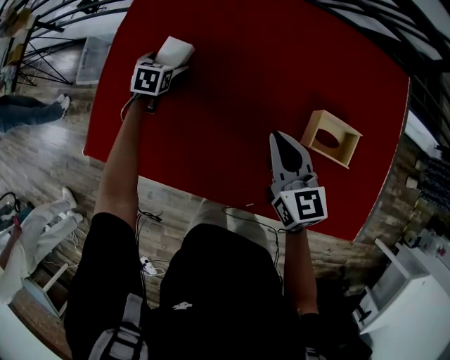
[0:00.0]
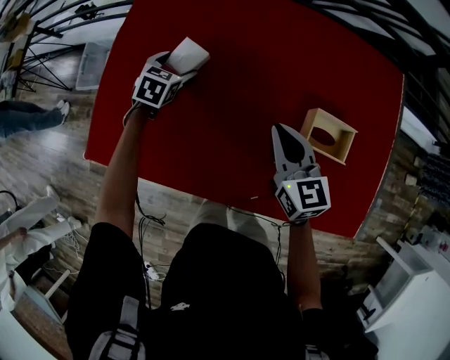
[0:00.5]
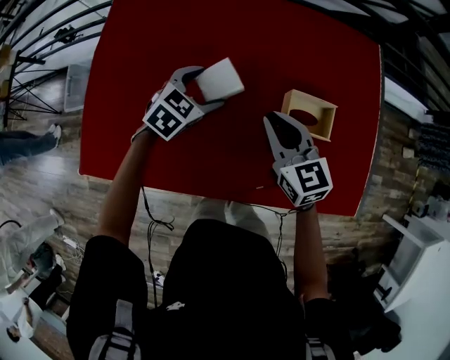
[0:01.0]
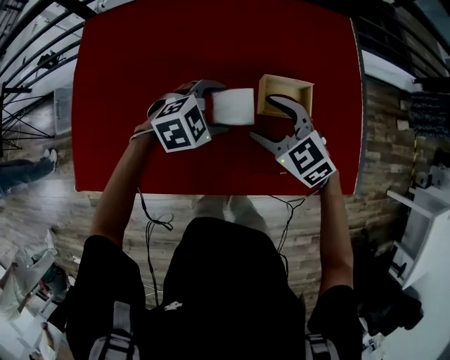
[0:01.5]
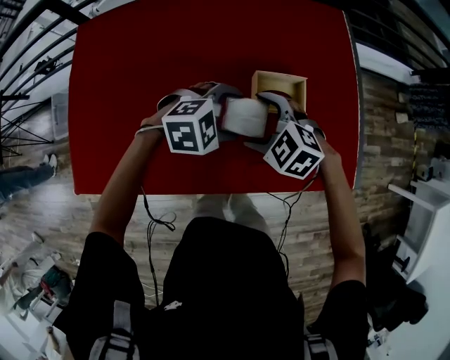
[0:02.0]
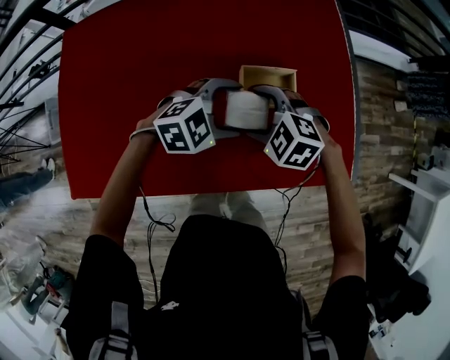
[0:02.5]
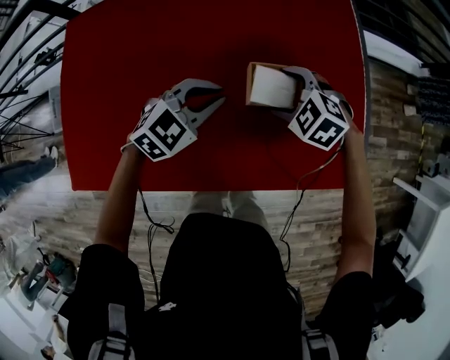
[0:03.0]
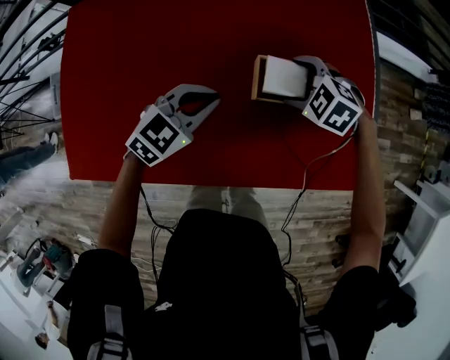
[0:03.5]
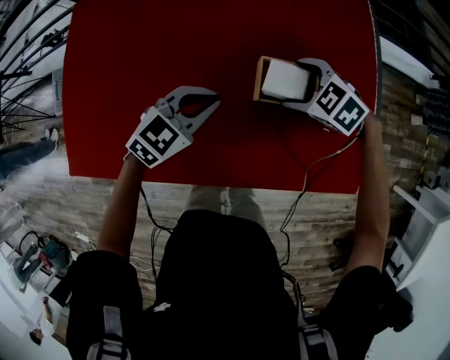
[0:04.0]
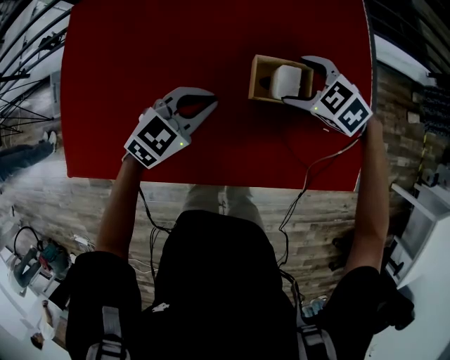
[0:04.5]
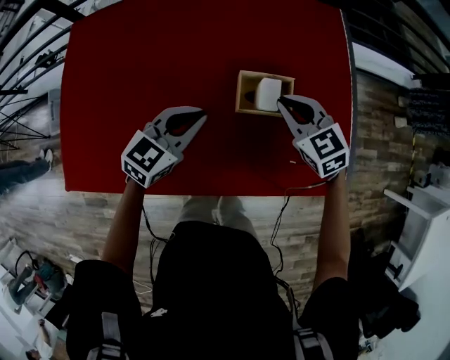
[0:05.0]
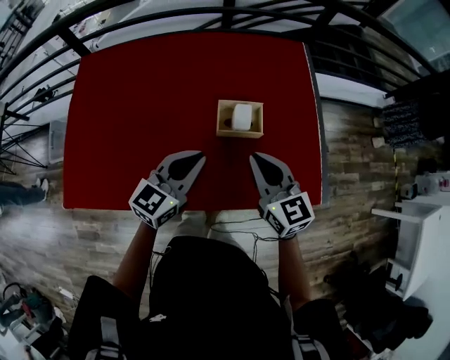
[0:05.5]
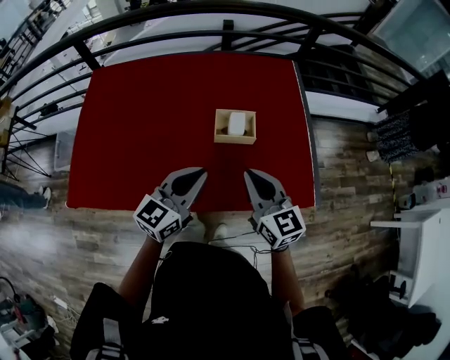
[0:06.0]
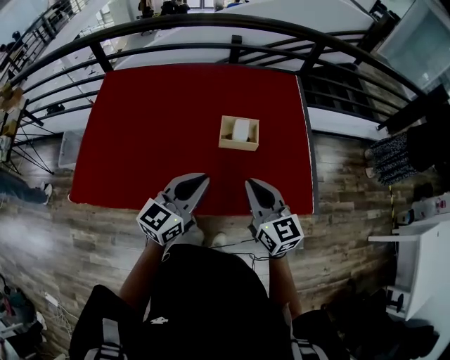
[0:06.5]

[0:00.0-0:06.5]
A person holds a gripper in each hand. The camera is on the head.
0:00.0 to 0:02.0: The right gripper ends up roughly 10 cm from where it was, points its fingers roughly 30 degrees further downward, and opens. The left gripper ends up roughly 50 cm from where it was, and rotates approximately 90 degrees.
0:02.0 to 0:04.5: The right gripper moves some 15 cm. The left gripper swivels some 40 degrees, and closes up.
0:04.5 to 0:06.5: The grippers both shift backward and upward by approximately 30 cm. The left gripper tips its fingers upward by some 30 degrees; the right gripper tips its fingers upward by roughly 50 degrees, and closes its fingers.

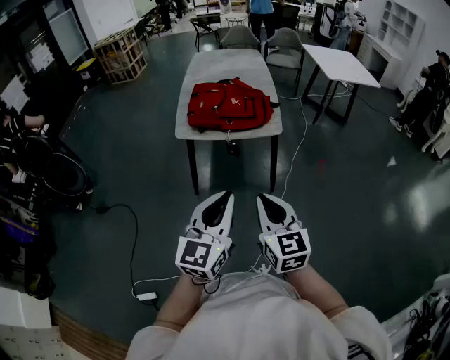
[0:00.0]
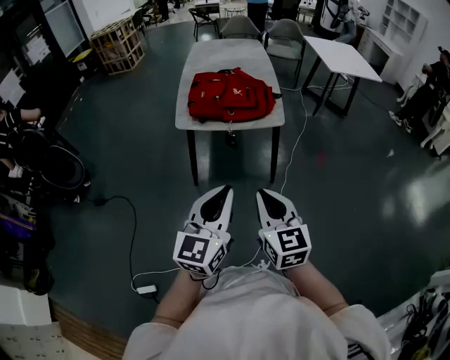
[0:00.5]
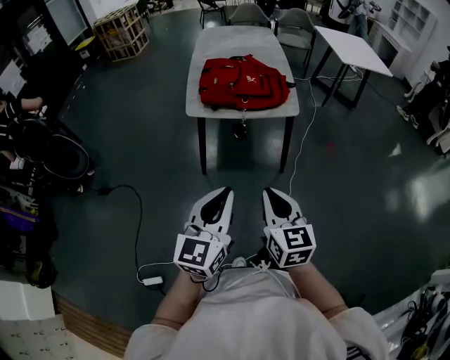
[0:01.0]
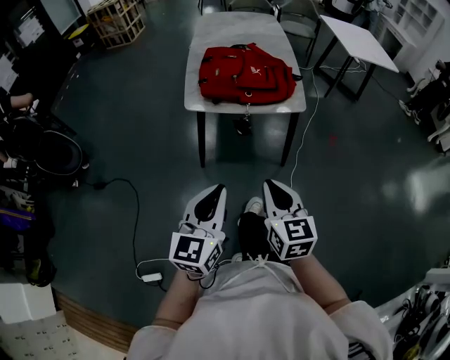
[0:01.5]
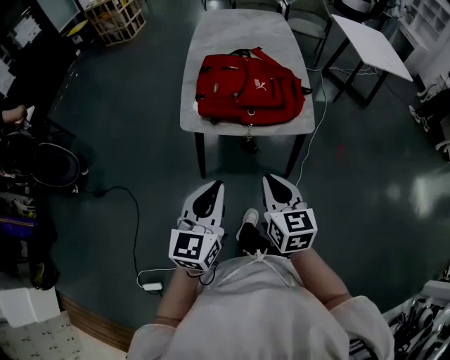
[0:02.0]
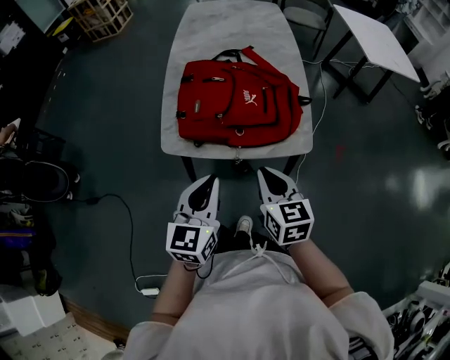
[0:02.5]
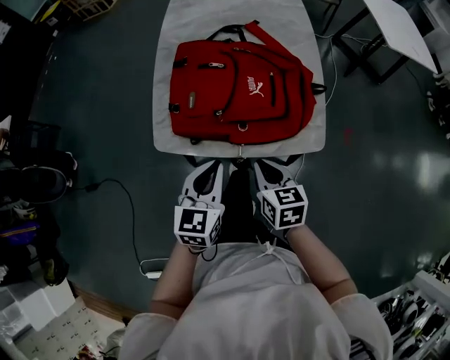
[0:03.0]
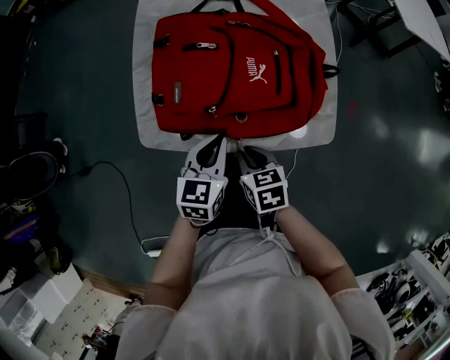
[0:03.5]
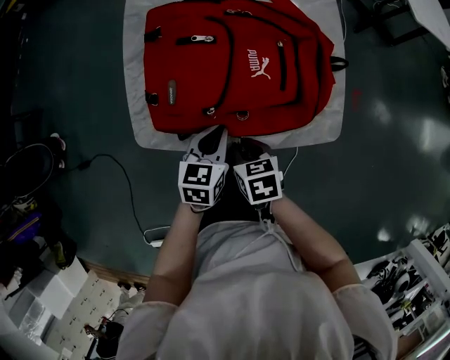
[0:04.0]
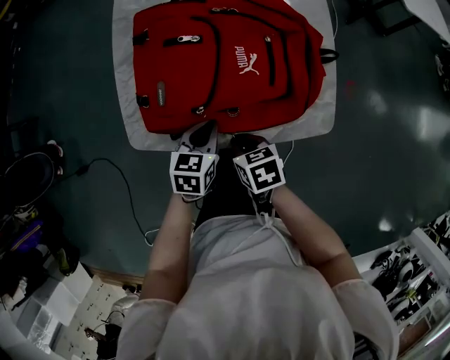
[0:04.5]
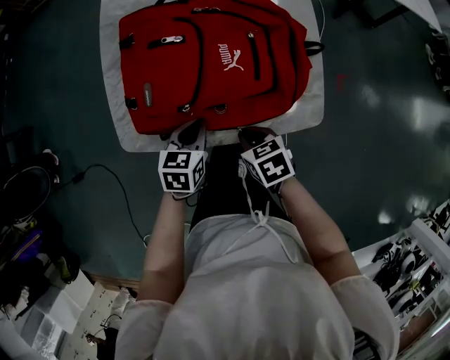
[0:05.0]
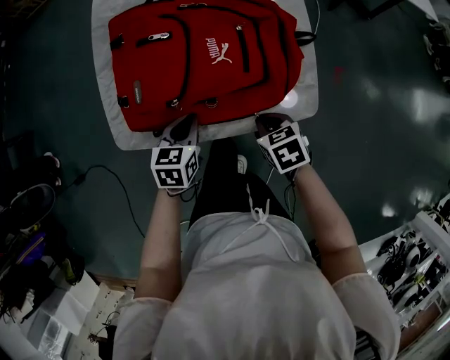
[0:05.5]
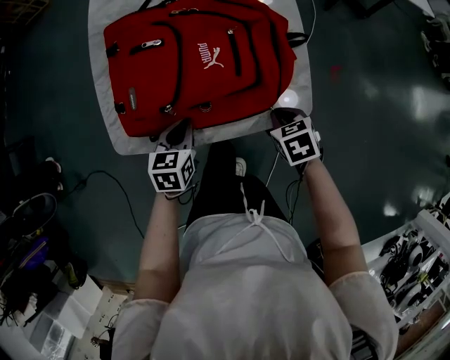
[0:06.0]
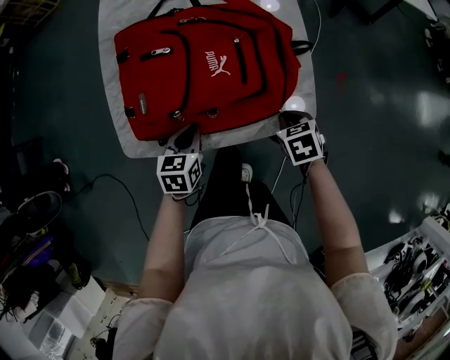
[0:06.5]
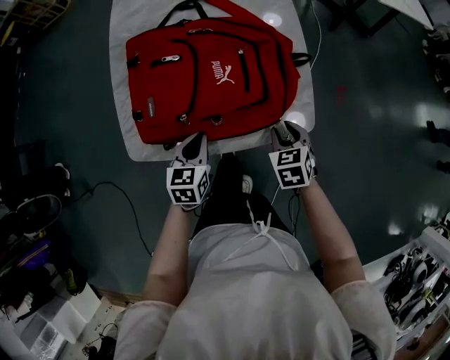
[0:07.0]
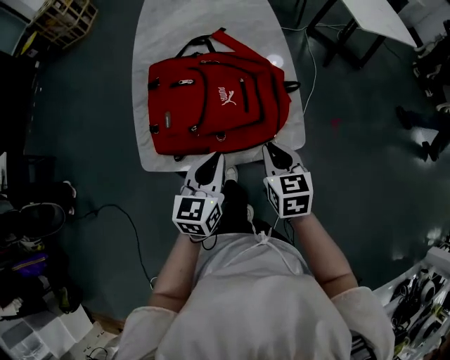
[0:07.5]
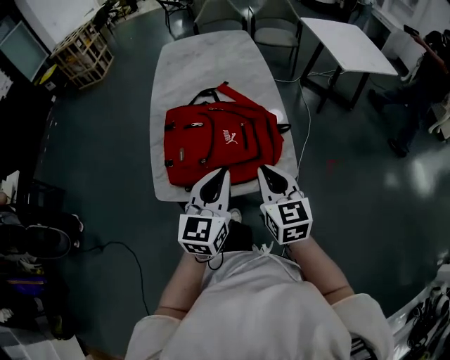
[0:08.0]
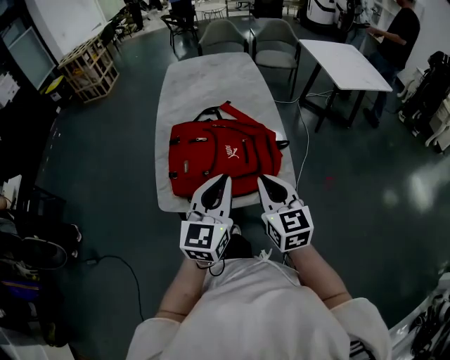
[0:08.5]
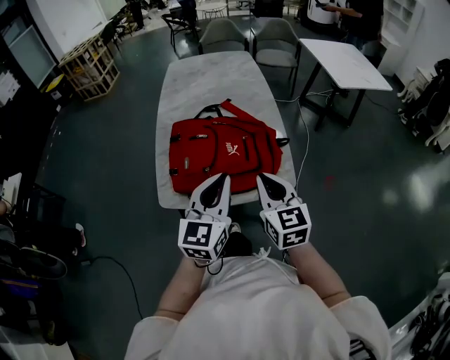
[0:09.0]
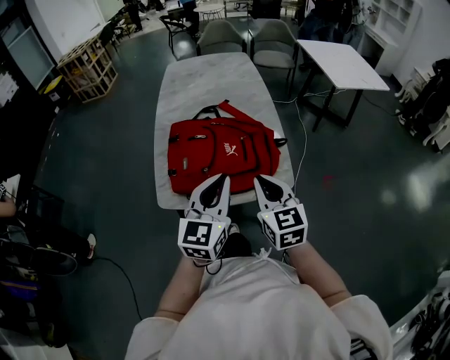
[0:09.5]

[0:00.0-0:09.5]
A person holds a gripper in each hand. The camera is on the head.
0:00.0 to 0:02.0: The right gripper moves forward, about 25 cm. Meanwhile the left gripper moves forward, to the left and downward, some 25 cm.
0:02.0 to 0:04.0: Both grippers travel together forward and downward, roughly 40 cm. The right gripper tilts its fingers approximately 30 degrees downward, while the left gripper changes its angle by some 30 degrees.
0:04.0 to 0:05.5: The right gripper shifts about 15 cm to the right.
0:05.5 to 0:07.5: Both grippers travel together upward, about 15 cm. The left gripper turns by roughly 30 degrees. Meanwhile the right gripper turns by roughly 30 degrees.
0:07.5 to 0:09.5: The right gripper travels upward and backward by approximately 15 cm, and turns by about 20 degrees, while the left gripper travels upward by roughly 15 cm, and turns by some 20 degrees.

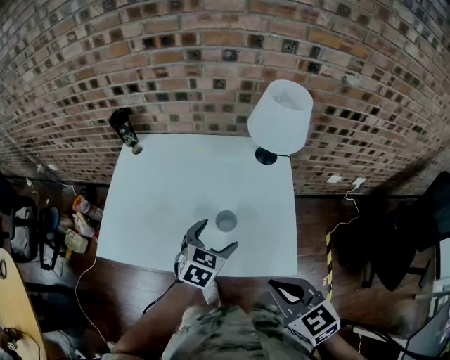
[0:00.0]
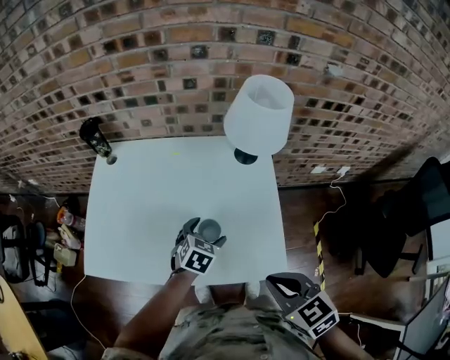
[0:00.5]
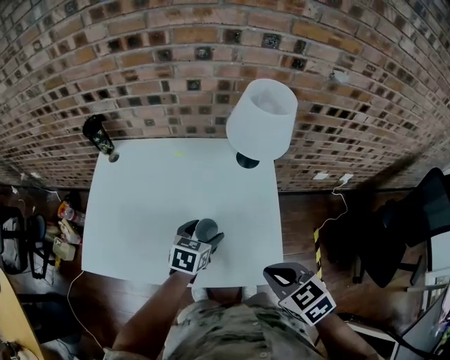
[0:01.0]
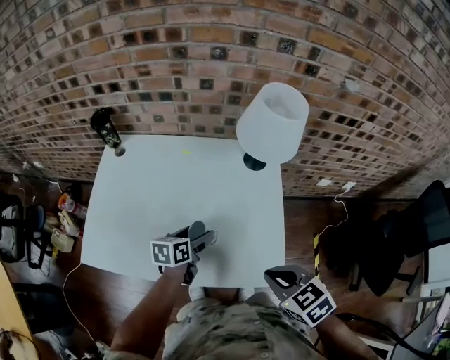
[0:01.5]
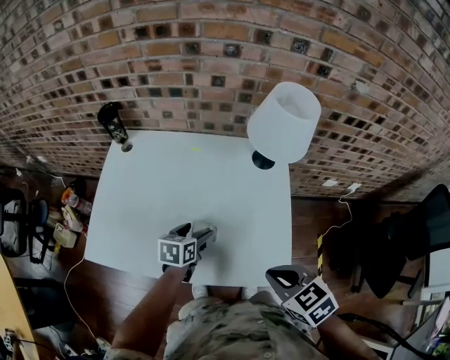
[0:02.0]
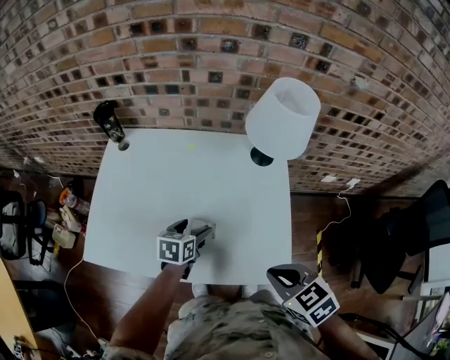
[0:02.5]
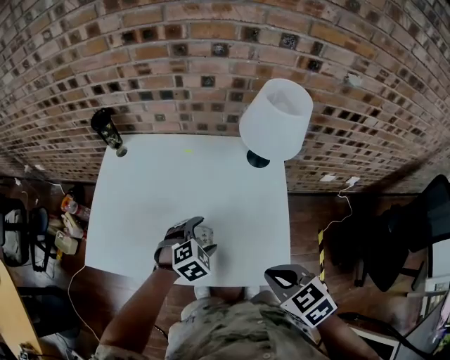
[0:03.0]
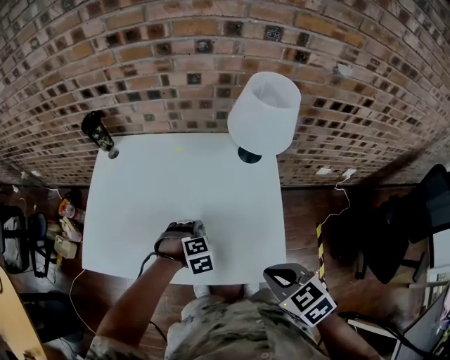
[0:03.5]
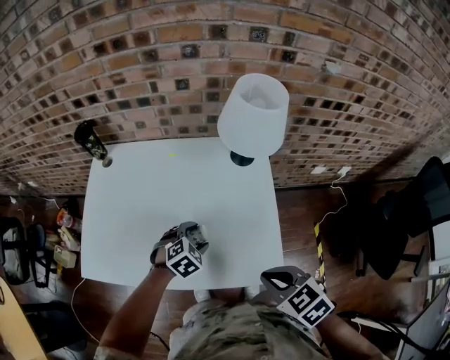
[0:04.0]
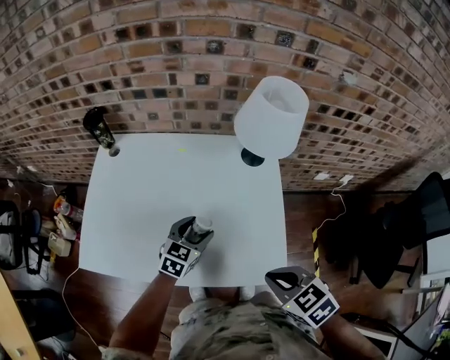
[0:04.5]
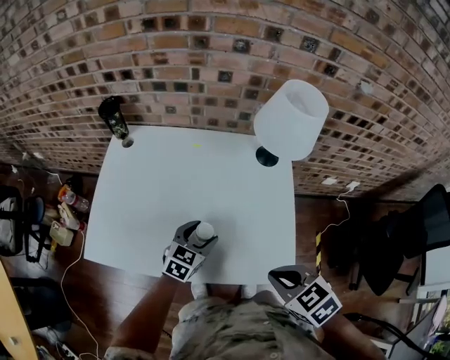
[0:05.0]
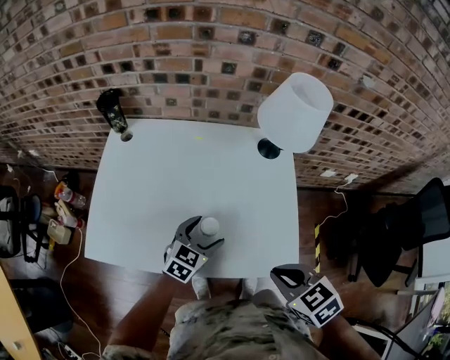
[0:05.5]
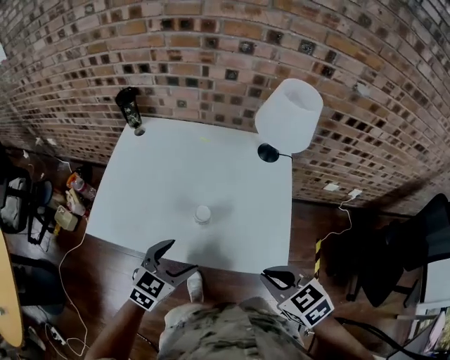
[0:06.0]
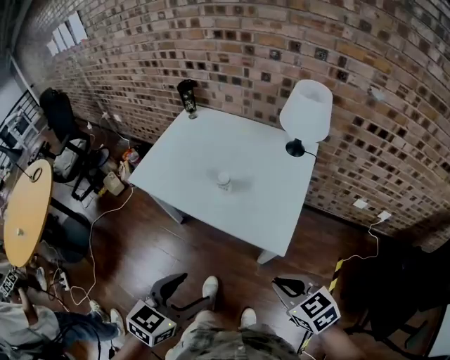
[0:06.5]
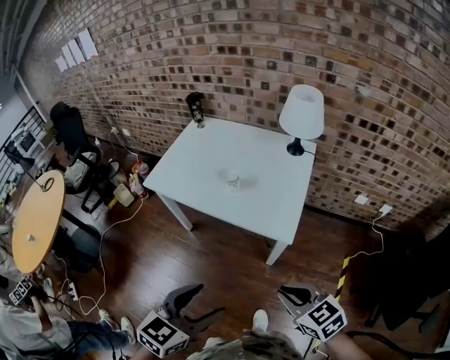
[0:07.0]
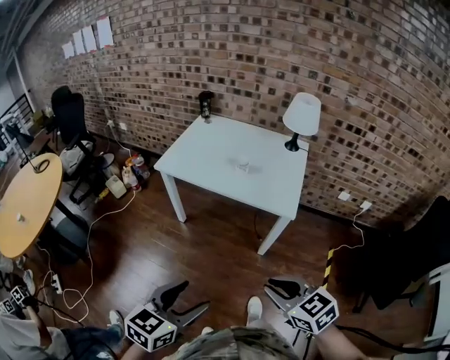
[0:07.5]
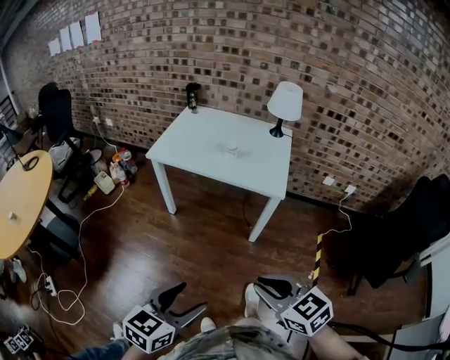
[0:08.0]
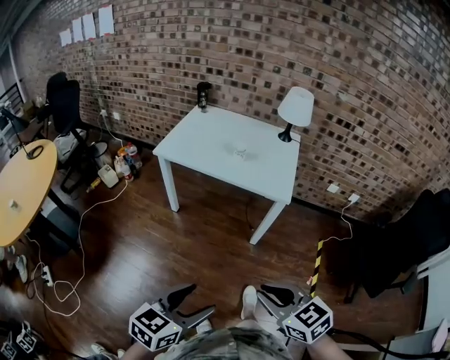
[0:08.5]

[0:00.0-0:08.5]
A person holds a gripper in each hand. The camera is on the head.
0:00.0 to 0:02.0: The right gripper moves forward and downward, about 10 cm, while the left gripper is displaced downward and forward by roughly 10 cm, and swivels roughly 30 degrees.
0:02.0 to 0:04.0: The left gripper moves to the right, roughly 5 cm, and twists some 60 degrees clockwise, seen from behind.
0:04.0 to 0:06.5: The left gripper is displaced backward and upward by approximately 40 cm, and turns by roughly 60 degrees, while the right gripper is displaced backward by approximately 20 cm, and swivels roughly 20 degrees.
0:06.5 to 0:08.5: Both grippers move backward and to the left, some 35 cm.

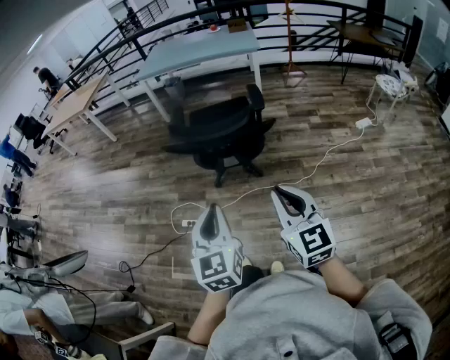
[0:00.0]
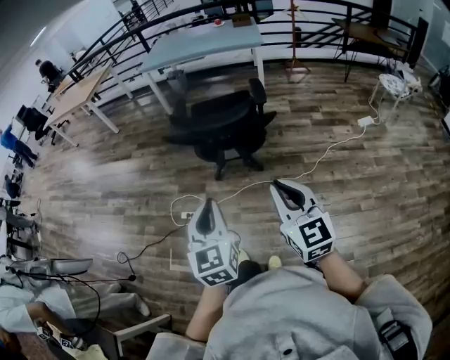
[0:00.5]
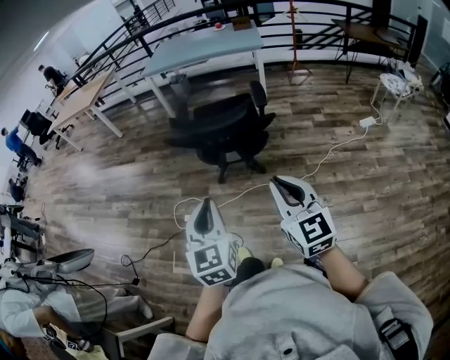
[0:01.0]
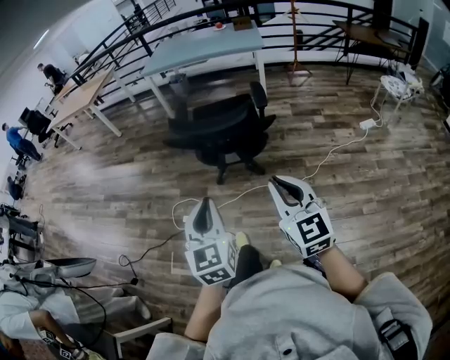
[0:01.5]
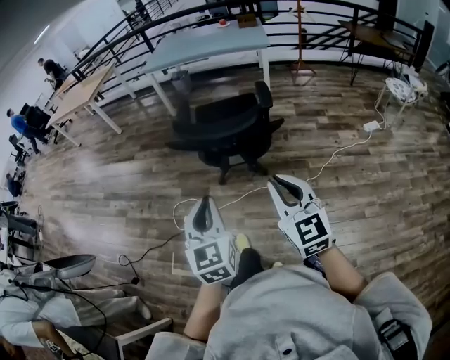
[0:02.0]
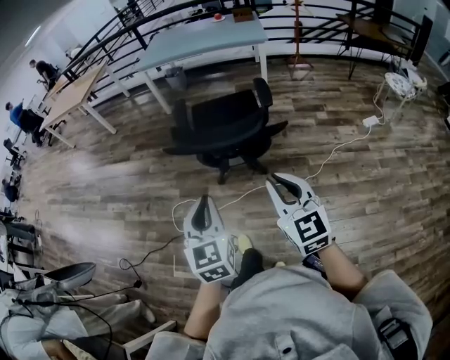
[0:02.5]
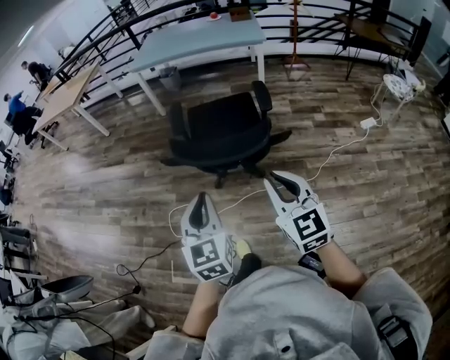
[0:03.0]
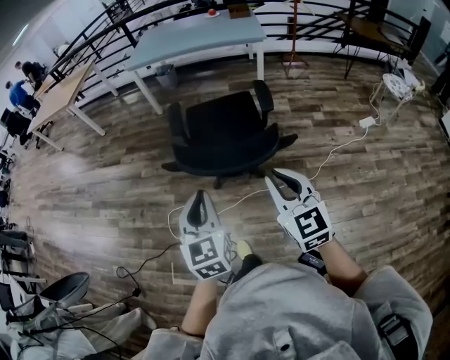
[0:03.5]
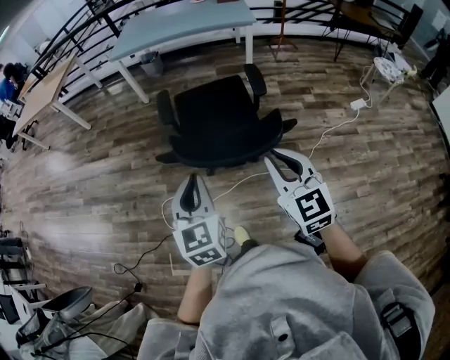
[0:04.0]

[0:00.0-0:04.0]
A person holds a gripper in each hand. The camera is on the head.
0:00.0 to 0:02.0: The right gripper moves forward, some 5 cm.
0:02.0 to 0:04.0: The grippers both shift forward by about 20 cm.
